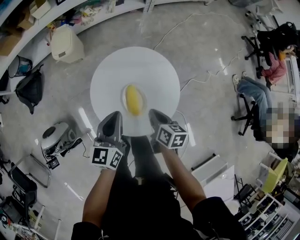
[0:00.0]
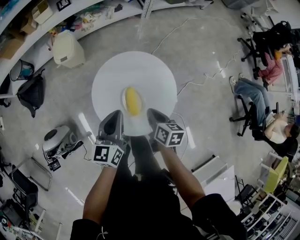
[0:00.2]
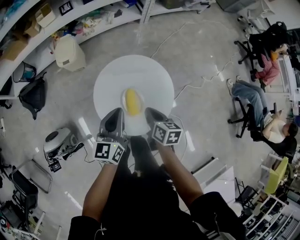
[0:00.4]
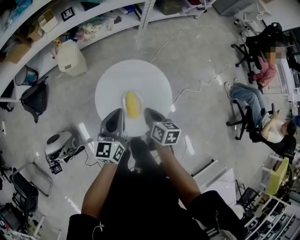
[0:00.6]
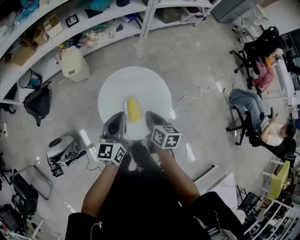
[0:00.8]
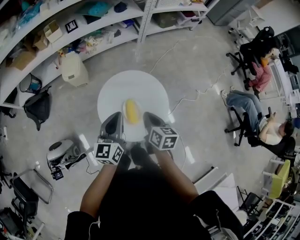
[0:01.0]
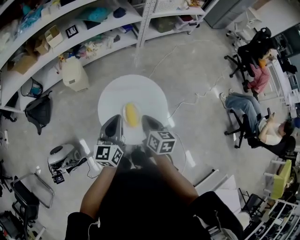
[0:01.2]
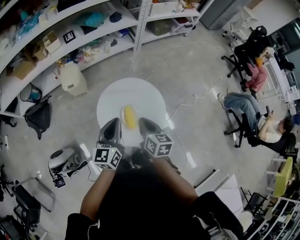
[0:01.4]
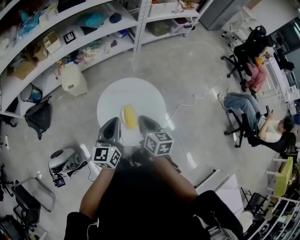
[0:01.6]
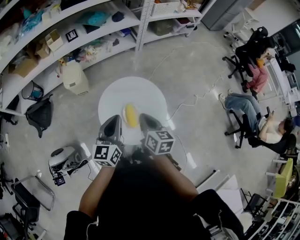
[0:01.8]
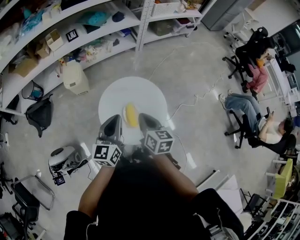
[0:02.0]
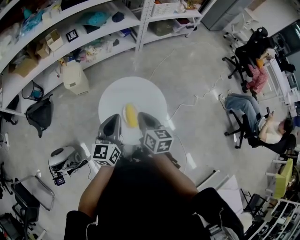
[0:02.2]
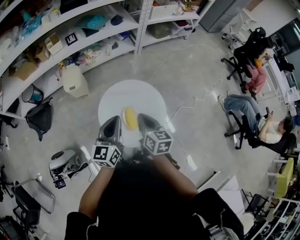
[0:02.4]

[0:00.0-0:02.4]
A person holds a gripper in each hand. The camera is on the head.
0:00.0 to 0:01.2: The left gripper moves upward, some 10 cm.

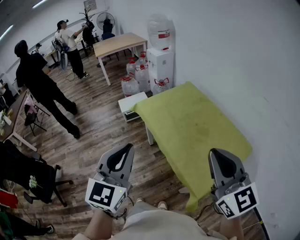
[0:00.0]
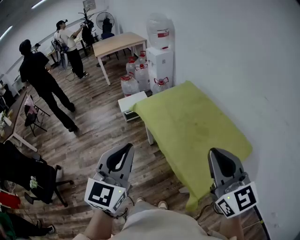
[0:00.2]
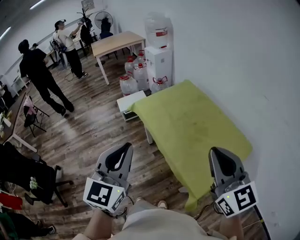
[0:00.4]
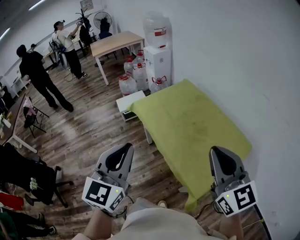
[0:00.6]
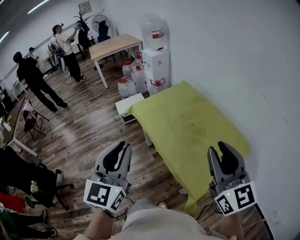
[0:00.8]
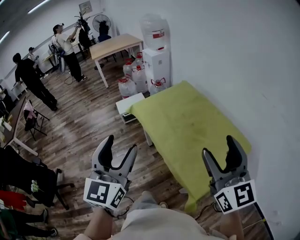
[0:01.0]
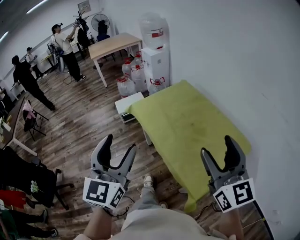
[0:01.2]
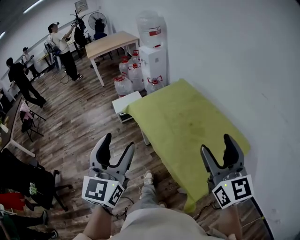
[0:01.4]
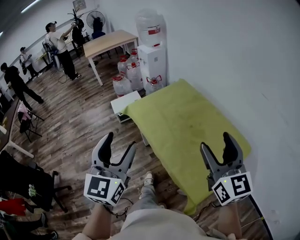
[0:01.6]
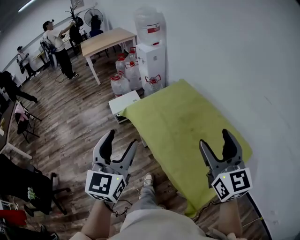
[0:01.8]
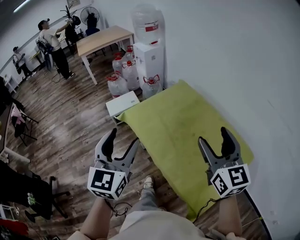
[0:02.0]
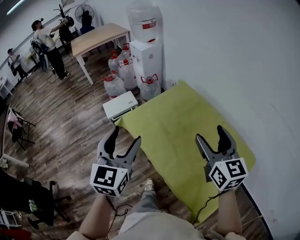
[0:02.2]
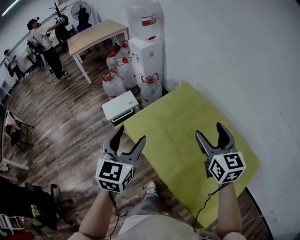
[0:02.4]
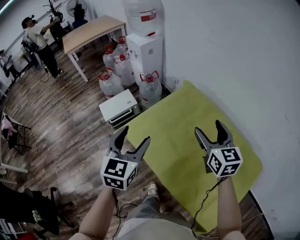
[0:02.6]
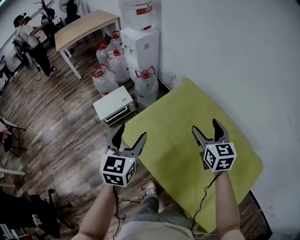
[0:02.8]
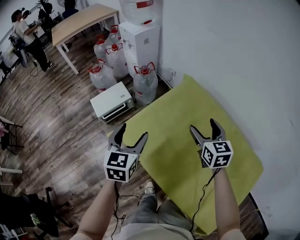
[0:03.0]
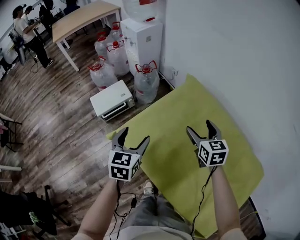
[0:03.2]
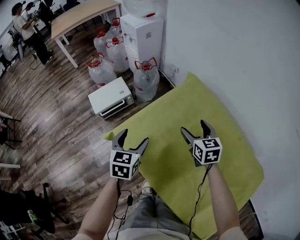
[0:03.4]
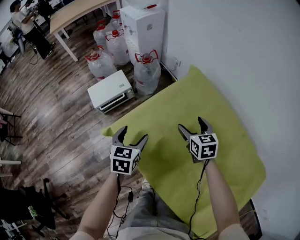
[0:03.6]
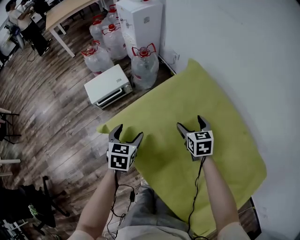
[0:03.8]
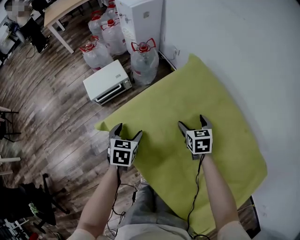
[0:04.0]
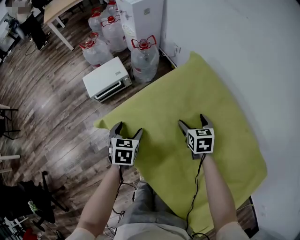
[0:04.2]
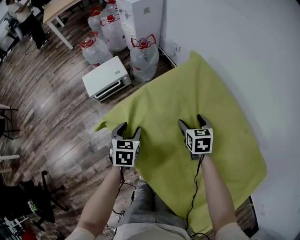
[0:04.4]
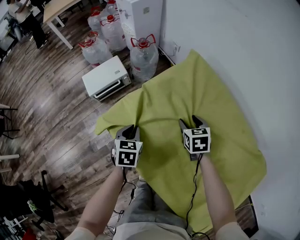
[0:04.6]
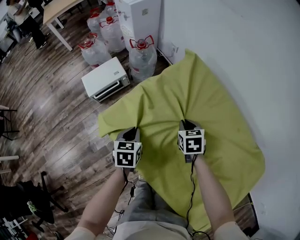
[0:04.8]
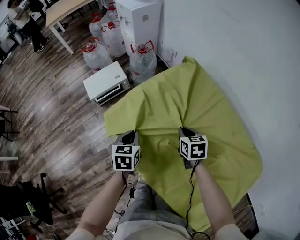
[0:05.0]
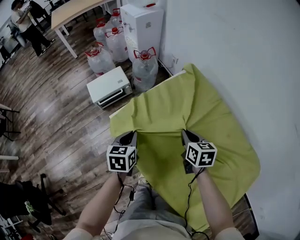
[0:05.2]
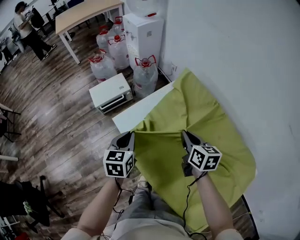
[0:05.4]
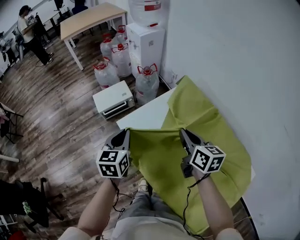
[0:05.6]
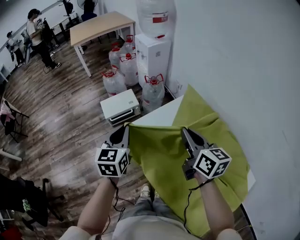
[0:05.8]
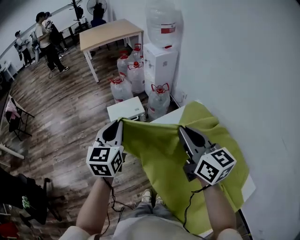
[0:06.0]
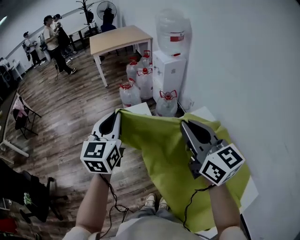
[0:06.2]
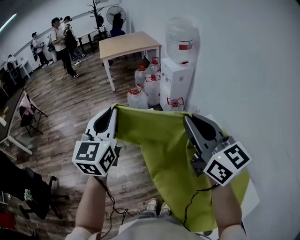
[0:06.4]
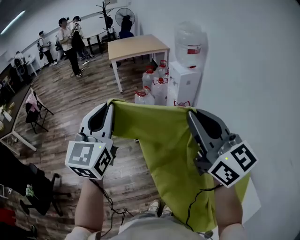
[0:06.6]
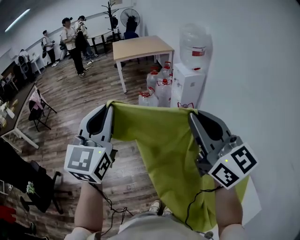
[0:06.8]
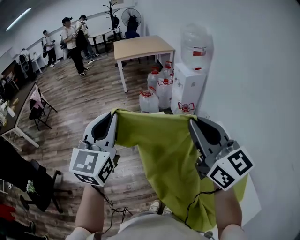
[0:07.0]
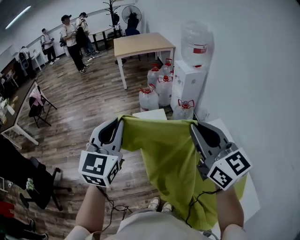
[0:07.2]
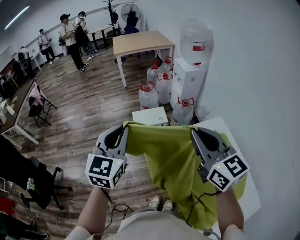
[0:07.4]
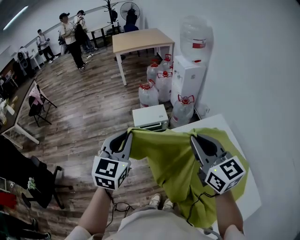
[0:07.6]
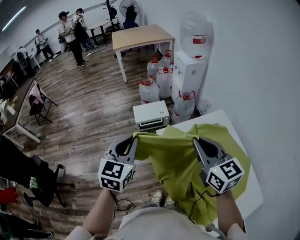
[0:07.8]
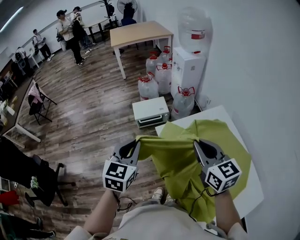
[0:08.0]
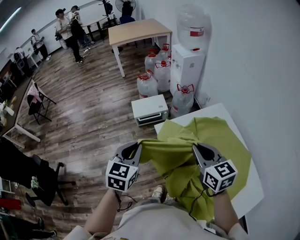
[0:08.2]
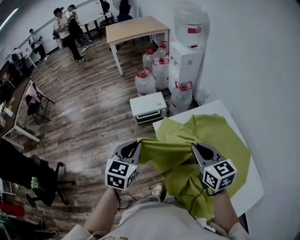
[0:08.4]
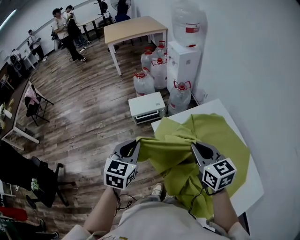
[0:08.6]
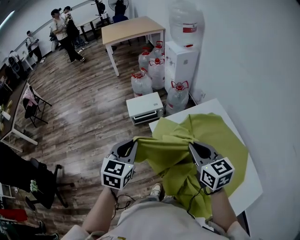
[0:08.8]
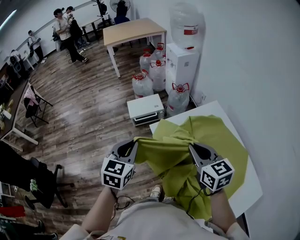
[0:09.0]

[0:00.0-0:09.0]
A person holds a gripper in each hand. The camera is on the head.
0:00.0 to 0:01.6: The left gripper travels forward by some 10 cm, and opens up. Meanwhile the right gripper heads forward and to the right, covering about 15 cm, and opens its fingers.
0:01.6 to 0:03.0: The pair of grippers is taken forward, approximately 50 cm. The grippers both shift downward by about 25 cm. The right gripper changes its angle by some 30 degrees. The left gripper turns by roughly 30 degrees.
0:03.0 to 0:04.4: The grippers both shift downward by roughly 20 cm. The right gripper turns by roughly 20 degrees. The left gripper turns by approximately 20 degrees.
0:04.4 to 0:06.0: The grippers both shift upward by about 40 cm. The left gripper tips its fingers upward by about 40 degrees, and closes. Meanwhile the right gripper angles its fingers upward, by roughly 40 degrees, and closes its fingers.
0:06.0 to 0:07.6: The right gripper moves to the left, roughly 10 cm, and travels upward and back again, roughly 20 cm each way. The left gripper goes about 10 cm to the left and backward, and travels upward and back again, approximately 20 cm each way.
0:07.6 to 0:09.0: Both grippers move downward and to the right, some 15 cm.

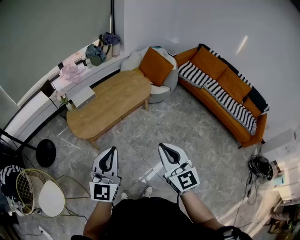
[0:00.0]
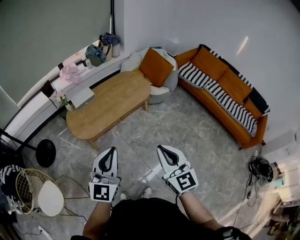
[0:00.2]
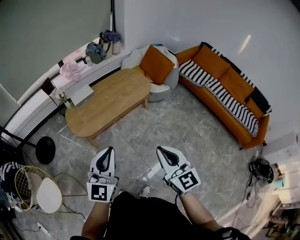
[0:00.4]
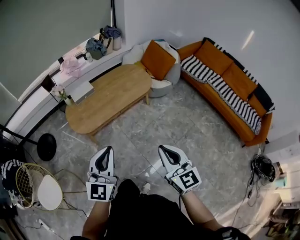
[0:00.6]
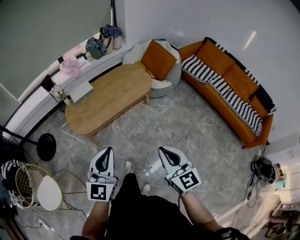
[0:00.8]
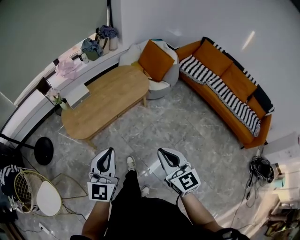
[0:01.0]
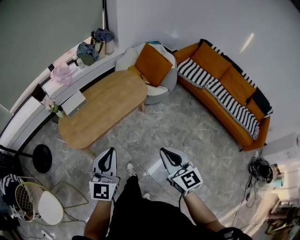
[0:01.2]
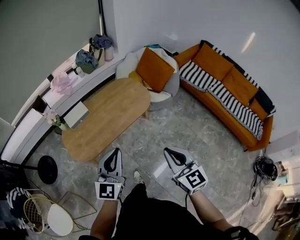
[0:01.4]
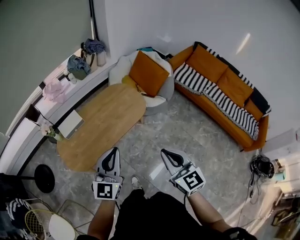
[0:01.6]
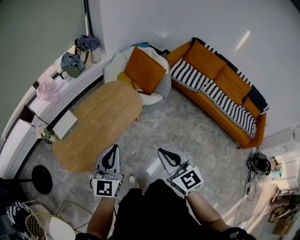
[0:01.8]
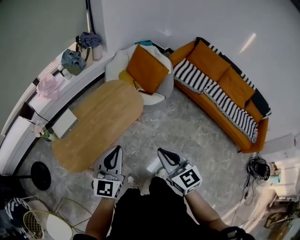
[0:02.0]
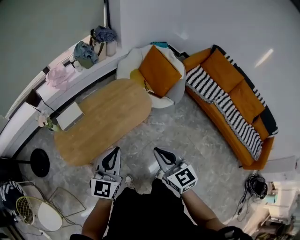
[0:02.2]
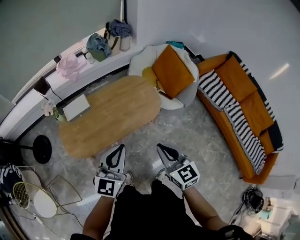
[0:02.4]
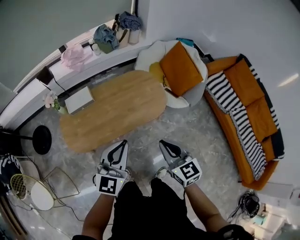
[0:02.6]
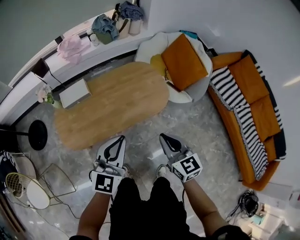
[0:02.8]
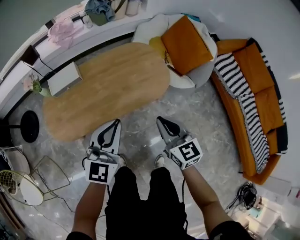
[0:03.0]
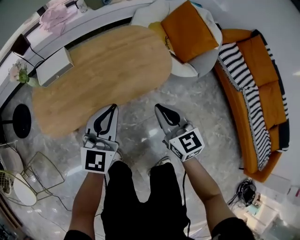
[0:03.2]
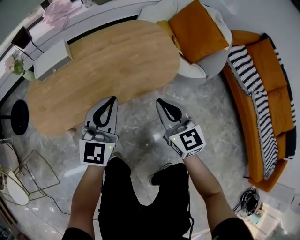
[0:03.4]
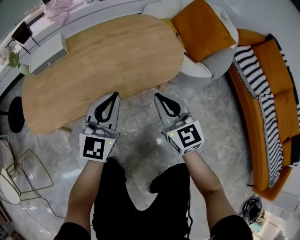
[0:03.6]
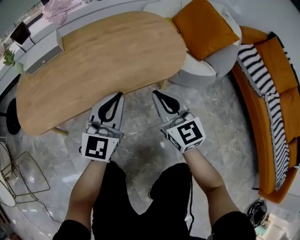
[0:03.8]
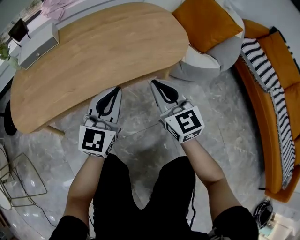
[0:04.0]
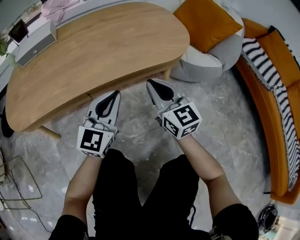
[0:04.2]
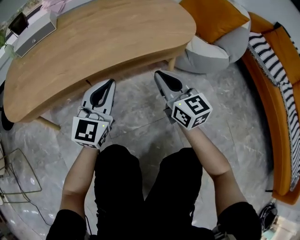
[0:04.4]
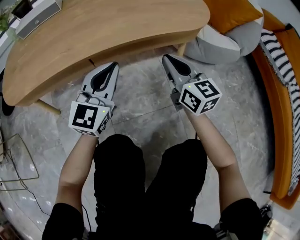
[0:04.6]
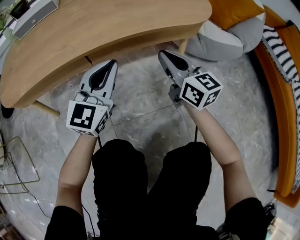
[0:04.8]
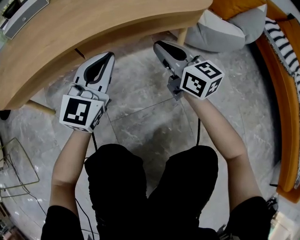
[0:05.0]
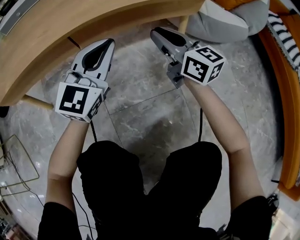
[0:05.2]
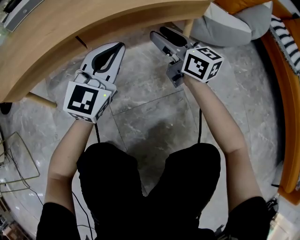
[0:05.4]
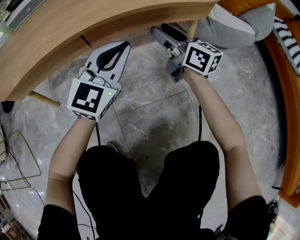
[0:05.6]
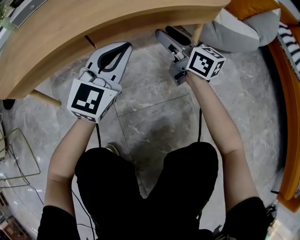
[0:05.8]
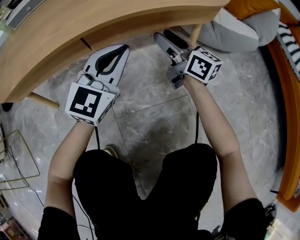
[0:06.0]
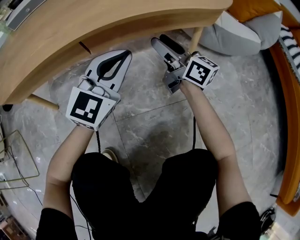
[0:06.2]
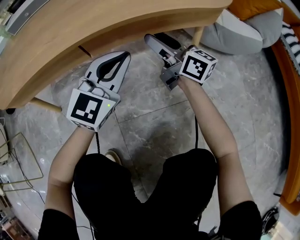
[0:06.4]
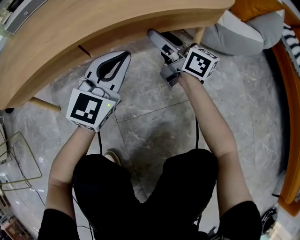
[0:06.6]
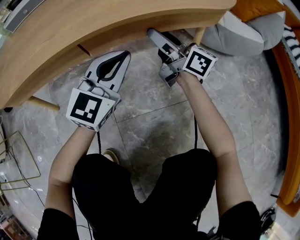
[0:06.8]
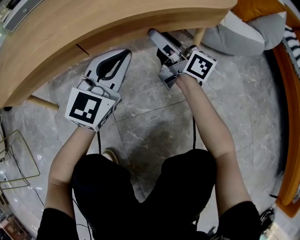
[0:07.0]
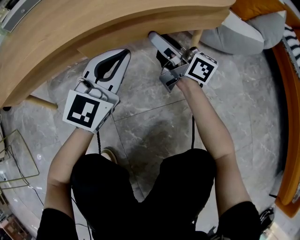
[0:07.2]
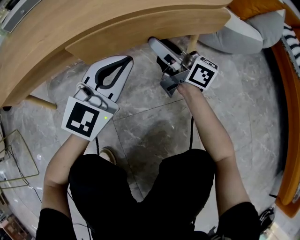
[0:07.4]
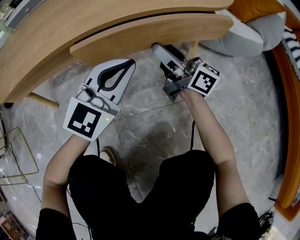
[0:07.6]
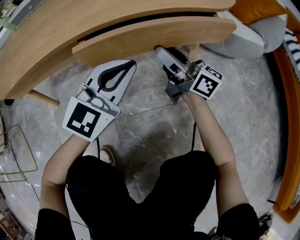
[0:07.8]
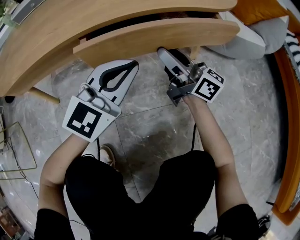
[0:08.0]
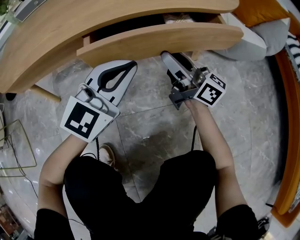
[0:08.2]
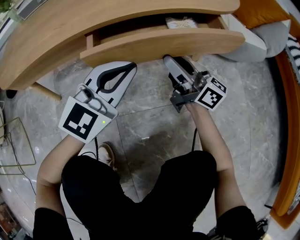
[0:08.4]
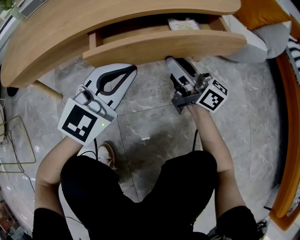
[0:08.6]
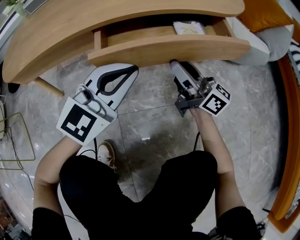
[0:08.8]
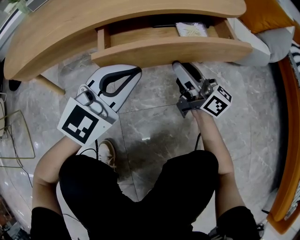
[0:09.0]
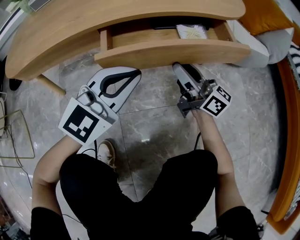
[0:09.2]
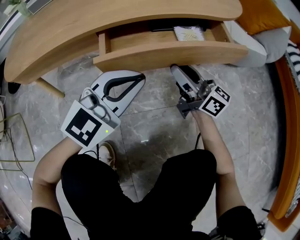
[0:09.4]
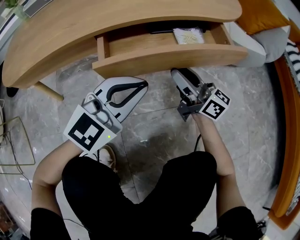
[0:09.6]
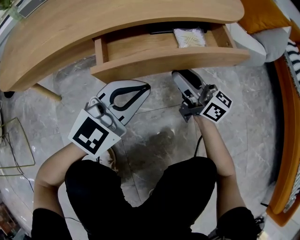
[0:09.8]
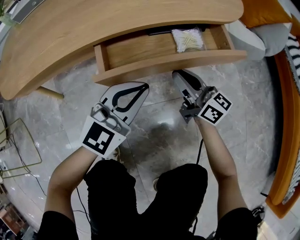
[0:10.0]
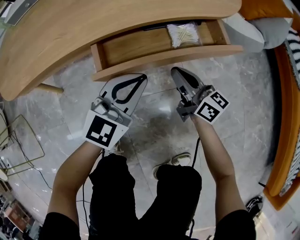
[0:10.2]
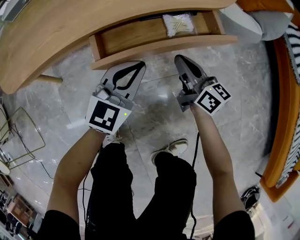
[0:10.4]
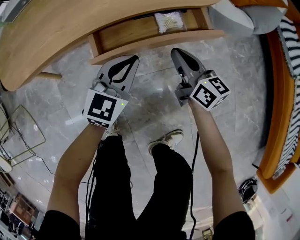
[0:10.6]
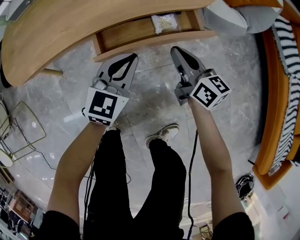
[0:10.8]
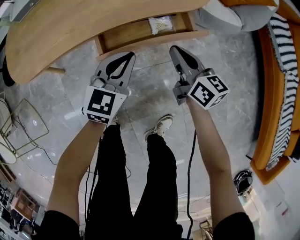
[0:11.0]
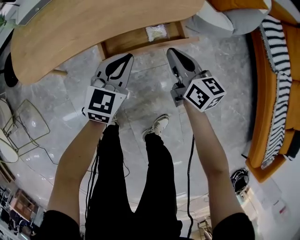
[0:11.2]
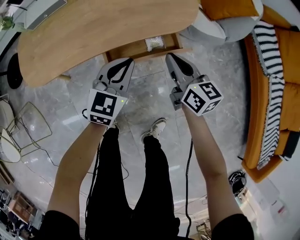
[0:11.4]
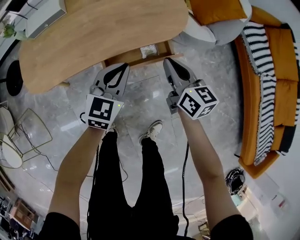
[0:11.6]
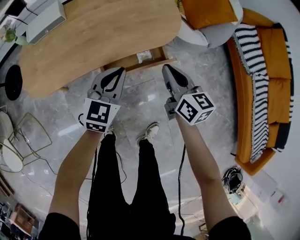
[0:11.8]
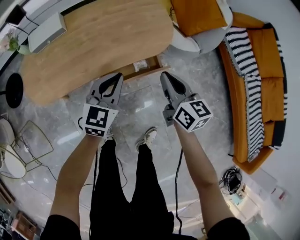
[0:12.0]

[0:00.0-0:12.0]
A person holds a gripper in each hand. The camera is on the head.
0:00.0 to 0:01.6: The two grippers go some 25 cm forward.
0:01.6 to 0:03.0: The left gripper heads downward and forward, covering about 20 cm. The right gripper is displaced forward and downward by approximately 30 cm, and rotates approximately 20 degrees.
0:03.0 to 0:04.4: The grippers both shift downward by some 40 cm.
0:04.4 to 0:06.0: The right gripper shifts approximately 10 cm downward and forward, swivels some 30 degrees, and opens its fingers; the left gripper travels downward by some 5 cm.
0:06.0 to 0:07.6: There are only small adjustments of the grippers.
0:07.6 to 0:09.0: Both grippers travel together backward, some 5 cm.
0:09.0 to 0:10.4: The right gripper turns by roughly 30 degrees, and closes.
0:10.4 to 0:12.0: The two grippers go some 35 cm upward.
